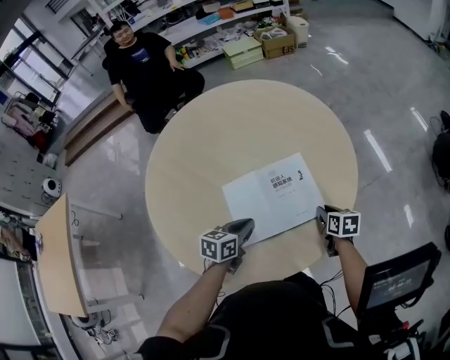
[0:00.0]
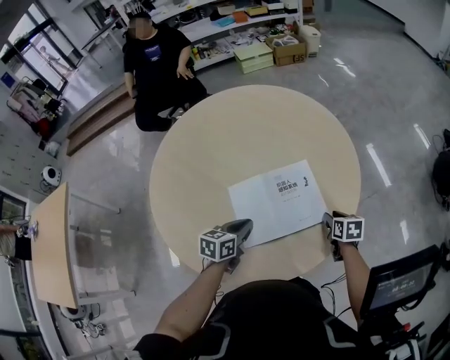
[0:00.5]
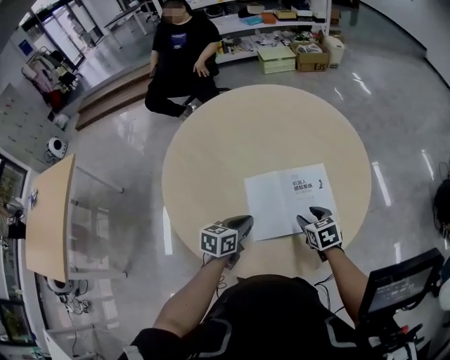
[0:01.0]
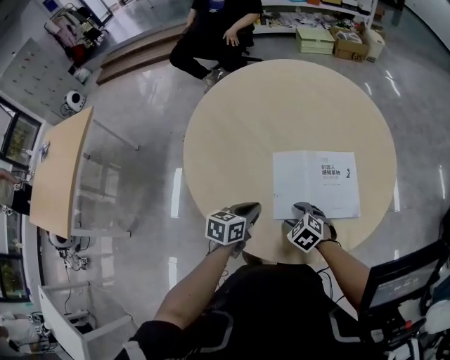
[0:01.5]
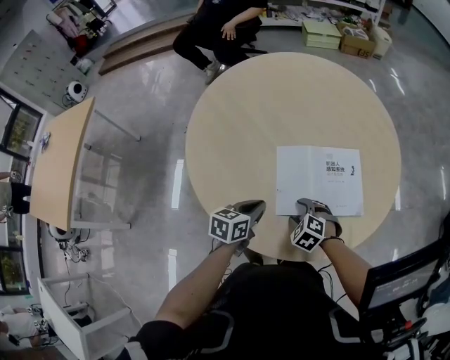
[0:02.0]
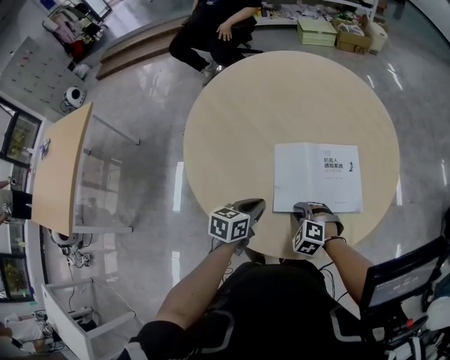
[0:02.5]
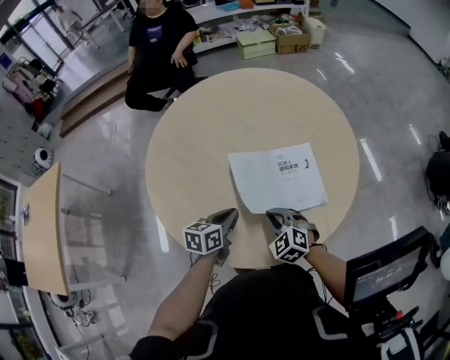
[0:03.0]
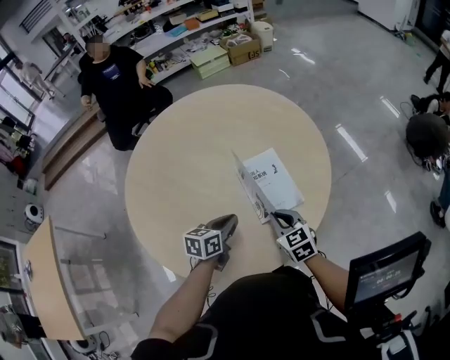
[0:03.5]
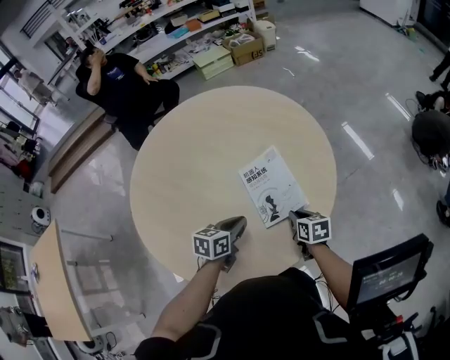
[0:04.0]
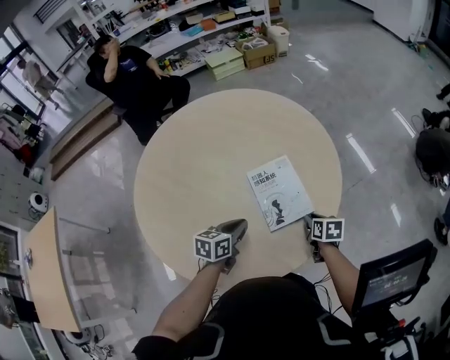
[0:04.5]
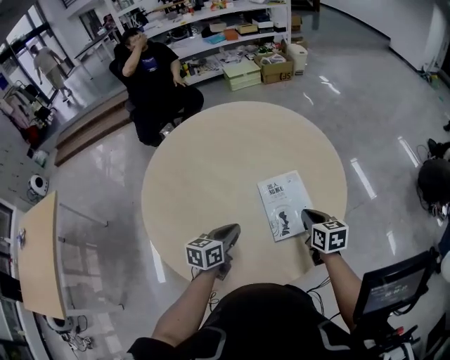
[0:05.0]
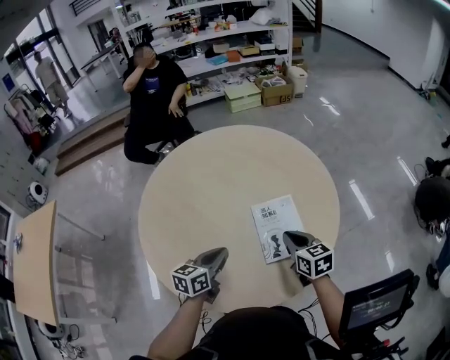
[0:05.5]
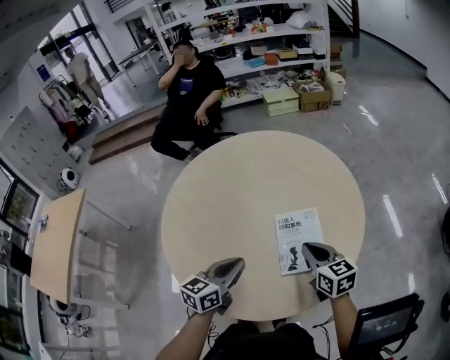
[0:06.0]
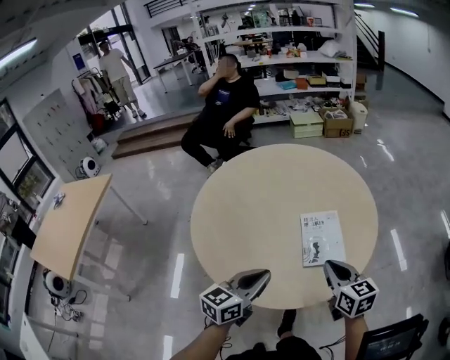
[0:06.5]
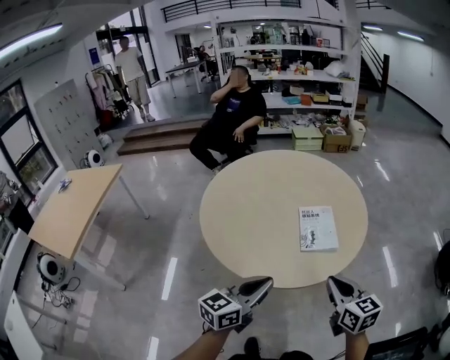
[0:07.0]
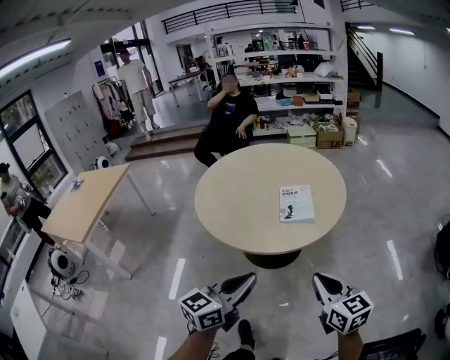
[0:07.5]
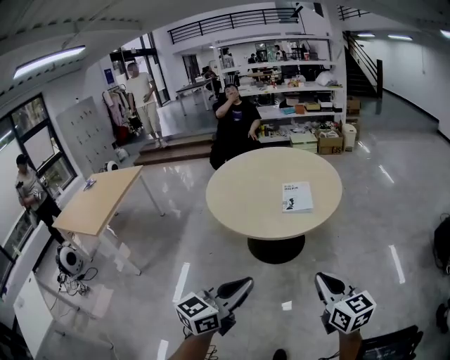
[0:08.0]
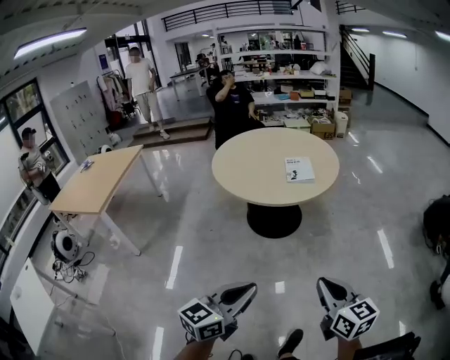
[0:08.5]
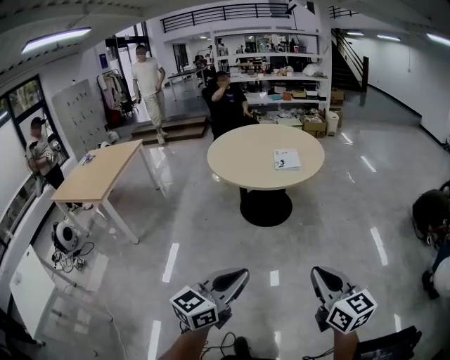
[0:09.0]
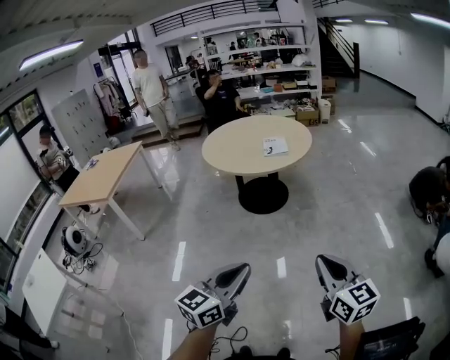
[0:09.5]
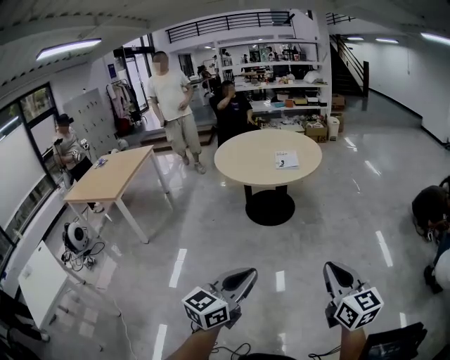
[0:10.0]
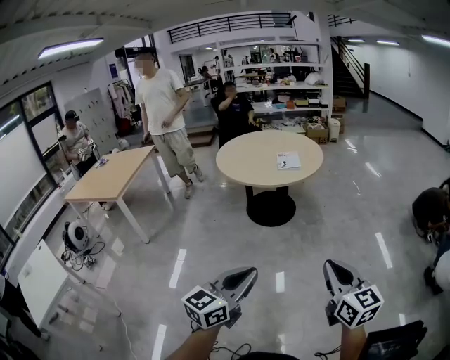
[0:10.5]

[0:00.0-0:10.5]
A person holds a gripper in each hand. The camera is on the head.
0:00.0 to 0:02.0: The left gripper moves roughly 10 cm. Meanwhile the right gripper changes place by approximately 25 cm, rolls counterclockwise, seen from behind, by about 90 degrees, and opens up.
0:02.0 to 0:04.0: The left gripper moves to the right and forward, approximately 15 cm, and changes its angle by about 20 degrees, while the right gripper travels to the right by approximately 20 cm, rolls clockwise, seen from behind, by some 90 degrees, and closes up.
0:04.0 to 0:06.5: The left gripper shifts some 20 cm upward and backward, and turns by some 30 degrees, while the right gripper moves upward, roughly 20 cm, and changes its angle by approximately 40 degrees.
0:06.5 to 0:08.5: The pair of grippers is taken backward, roughly 60 cm.
0:08.5 to 0:10.5: The left gripper heads backward, covering some 20 cm, while the right gripper heads backward and to the right, covering approximately 25 cm.

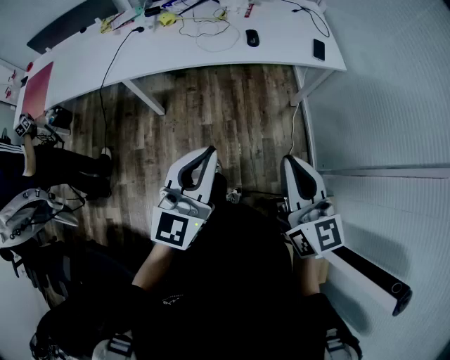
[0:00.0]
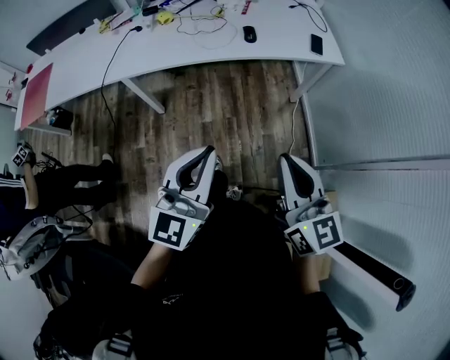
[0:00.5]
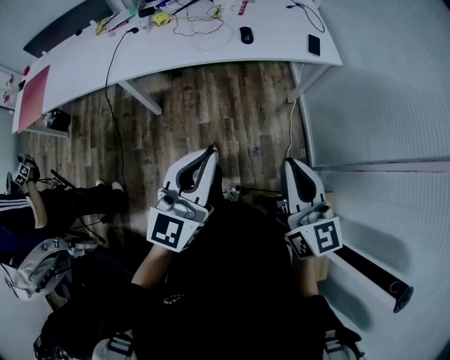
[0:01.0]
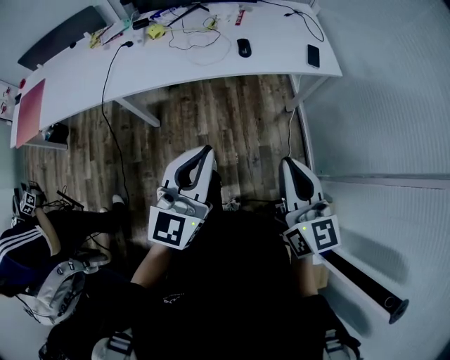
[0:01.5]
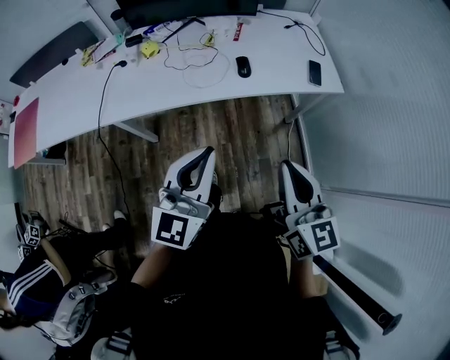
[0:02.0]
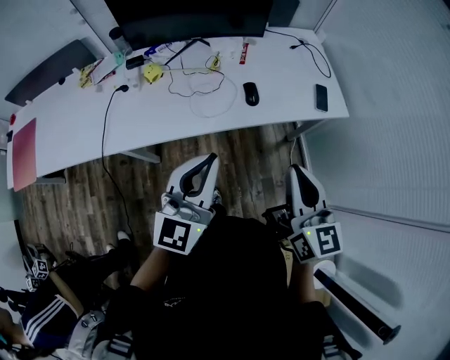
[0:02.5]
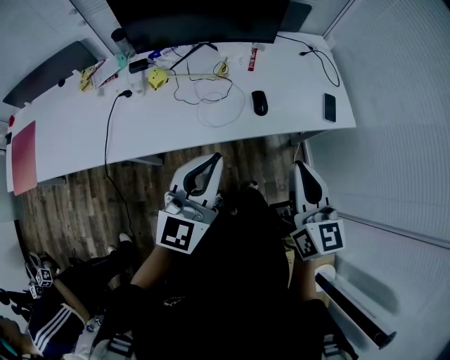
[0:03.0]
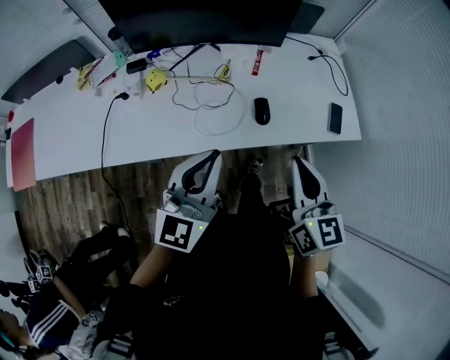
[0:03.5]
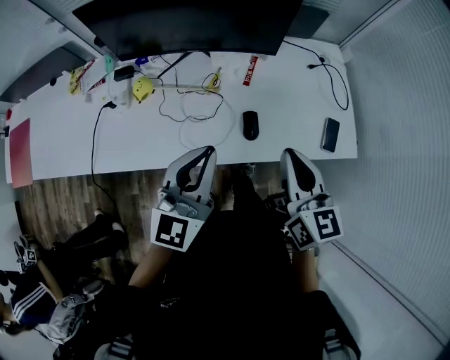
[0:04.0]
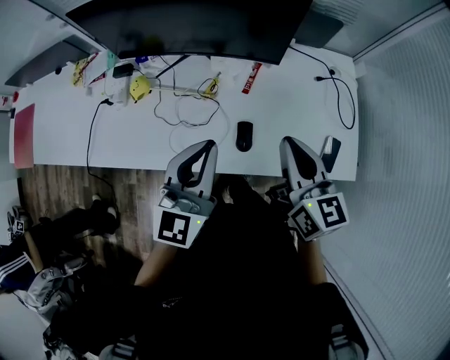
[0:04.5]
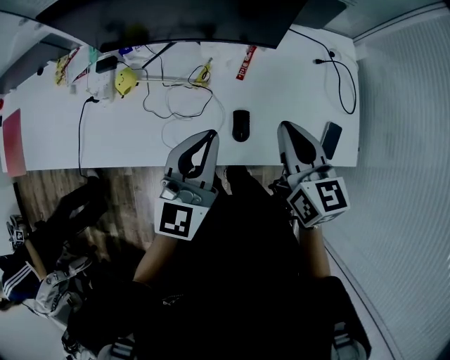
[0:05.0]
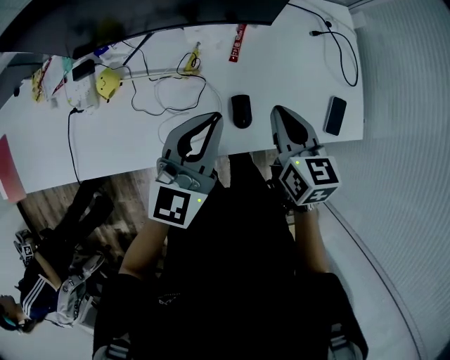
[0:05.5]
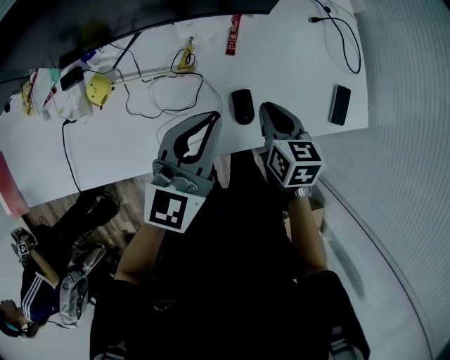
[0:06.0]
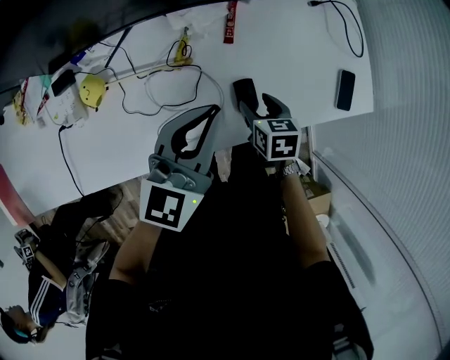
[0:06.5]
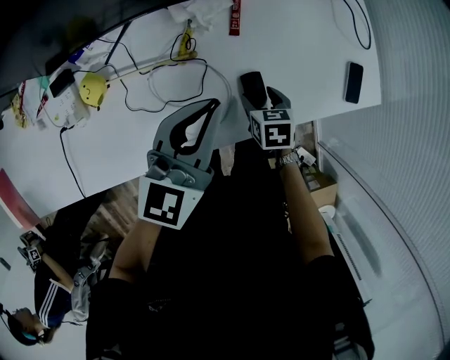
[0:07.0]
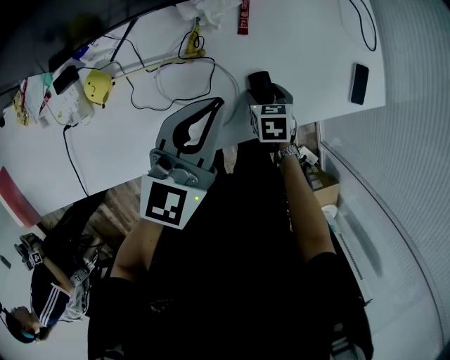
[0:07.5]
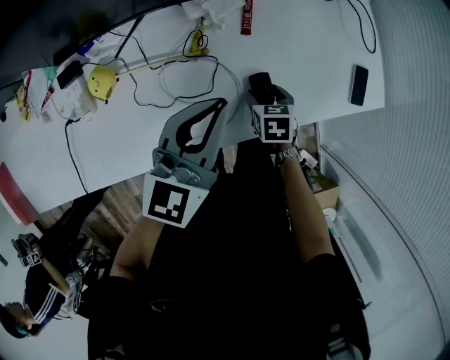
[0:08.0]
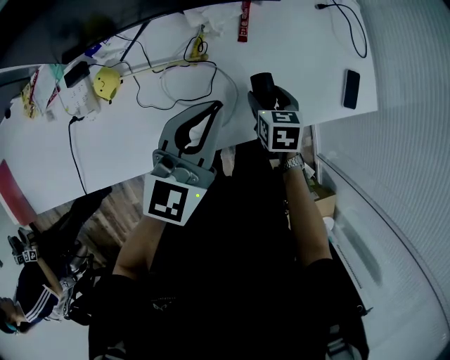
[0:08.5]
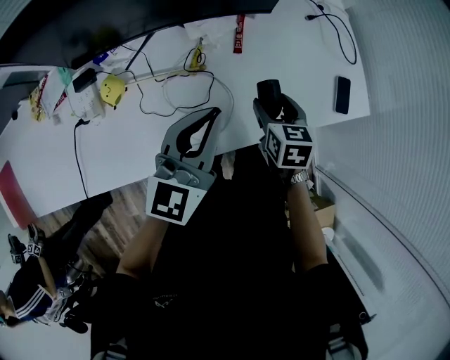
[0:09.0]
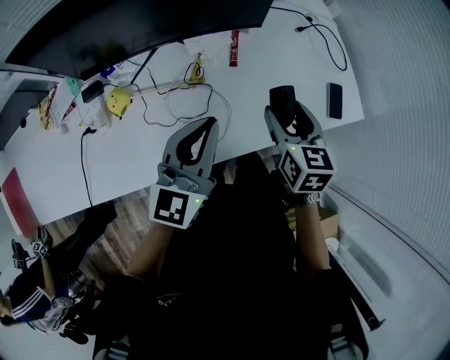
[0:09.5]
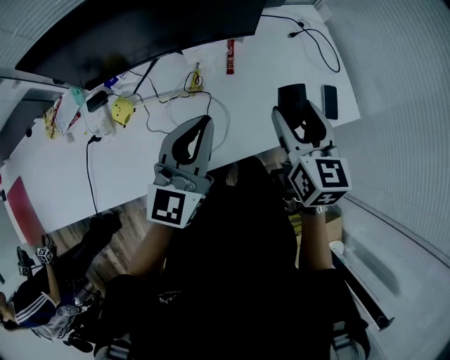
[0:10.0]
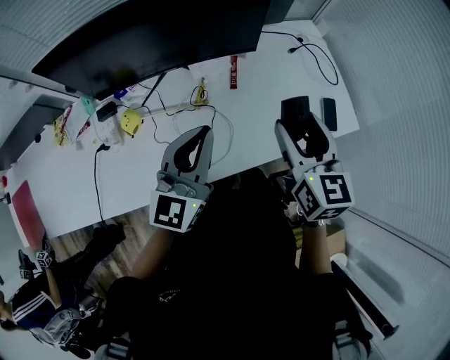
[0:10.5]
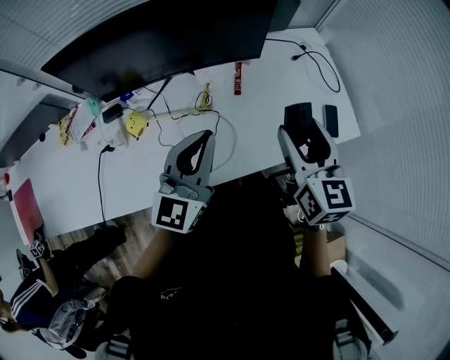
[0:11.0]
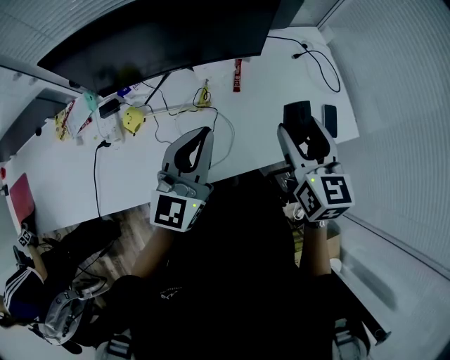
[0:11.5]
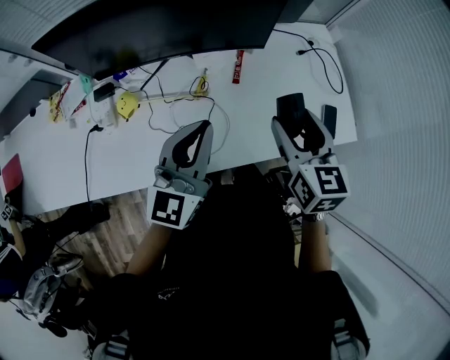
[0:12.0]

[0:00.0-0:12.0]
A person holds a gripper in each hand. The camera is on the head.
0:00.0 to 0:02.0: The grippers both shift forward by some 20 cm.
0:02.0 to 0:04.0: The grippers both shift forward by about 35 cm.
0:04.0 to 0:06.0: The left gripper goes some 20 cm forward and downward, while the right gripper moves downward and forward, some 25 cm, and points its fingers some 30 degrees further downward.
0:06.0 to 0:08.0: The right gripper travels downward by approximately 15 cm, rotates approximately 20 degrees, and opens its fingers.
0:08.0 to 0:10.0: The left gripper is displaced upward and backward by about 10 cm, while the right gripper moves upward, some 35 cm, and tips its fingers upward by approximately 40 degrees.
0:10.0 to 0:12.0: The grippers make only small movements.

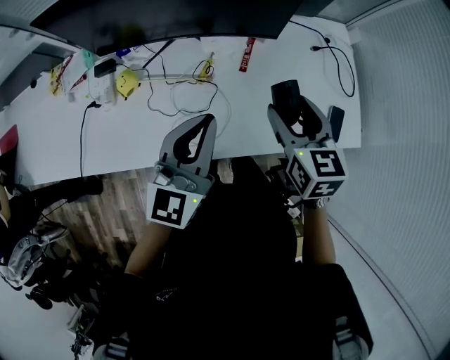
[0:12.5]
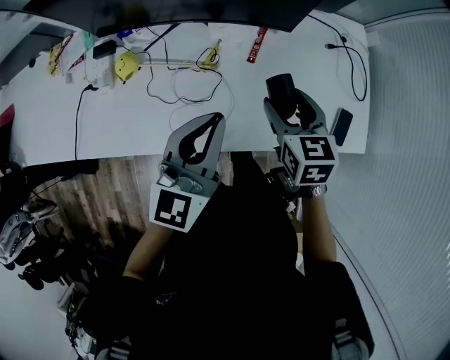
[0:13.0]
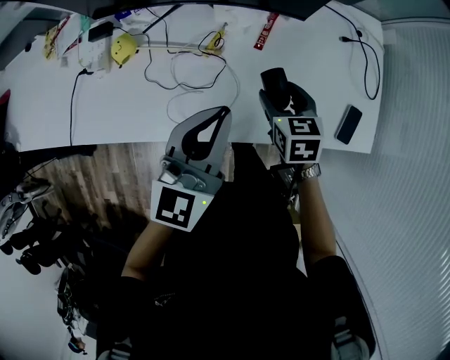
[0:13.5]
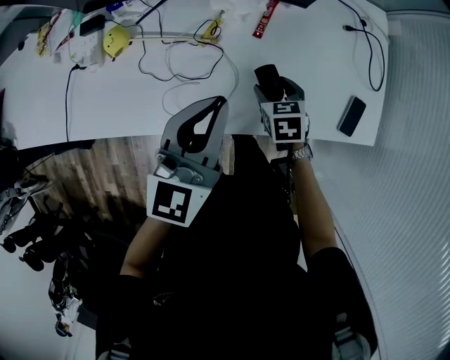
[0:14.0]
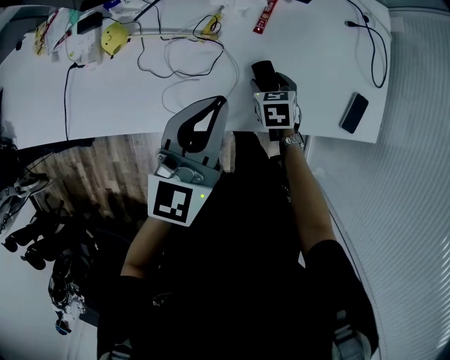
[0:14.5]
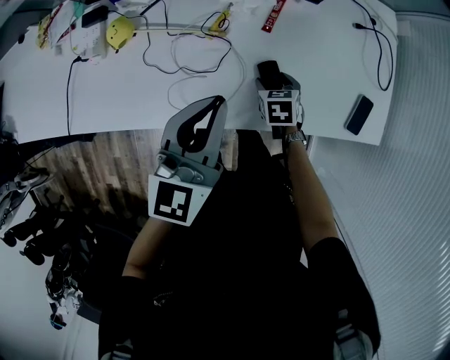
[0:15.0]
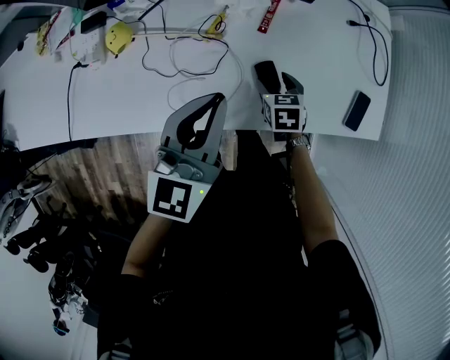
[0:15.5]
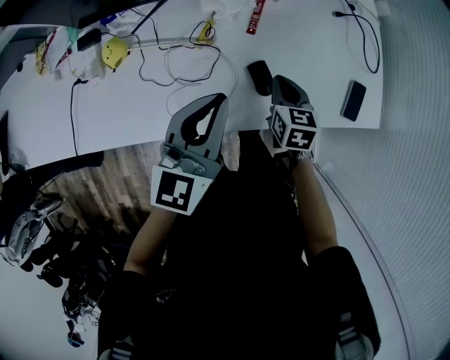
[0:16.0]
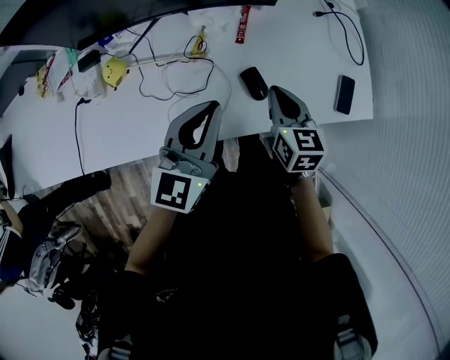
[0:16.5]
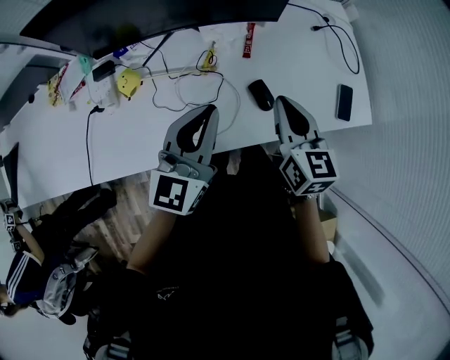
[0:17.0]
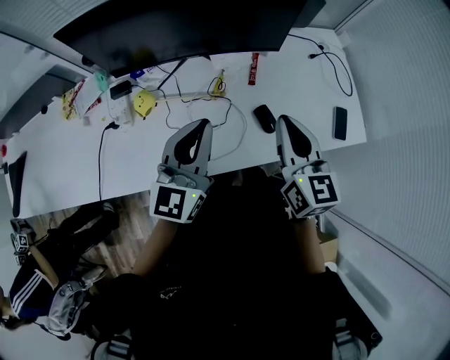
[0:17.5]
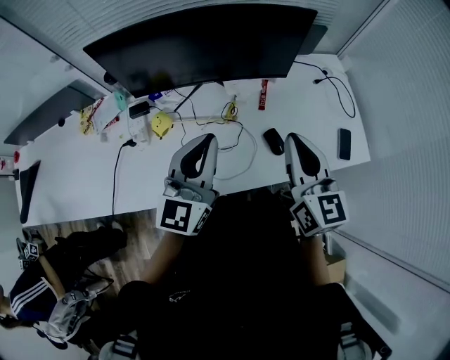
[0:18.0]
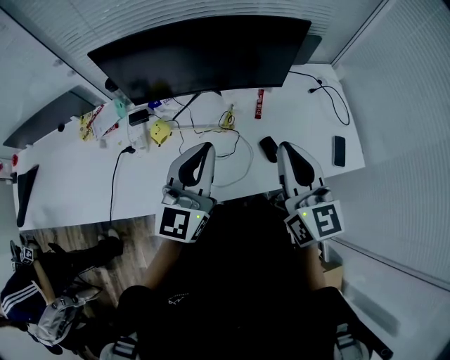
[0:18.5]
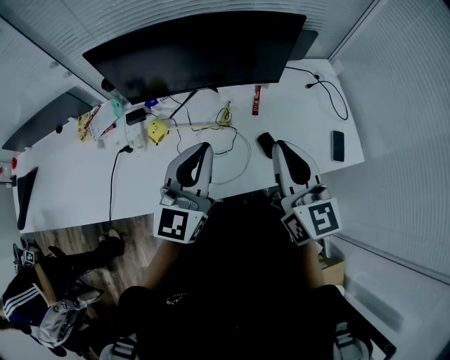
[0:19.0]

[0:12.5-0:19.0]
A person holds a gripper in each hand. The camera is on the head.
0:12.5 to 0:14.5: The right gripper moves downward, roughly 30 cm, and angles its fingers downward, by roughly 30 degrees. Meanwhile the left gripper shifts approximately 5 cm downward.
0:14.5 to 0:17.0: The right gripper heads upward, covering some 25 cm, tilts its fingers some 40 degrees upward, and closes its fingers. The left gripper shifts by approximately 5 cm.
0:17.0 to 0:19.0: The left gripper moves upward and to the left, roughly 10 cm. The right gripper is displaced upward and to the left by about 15 cm, and turns by roughly 20 degrees.
